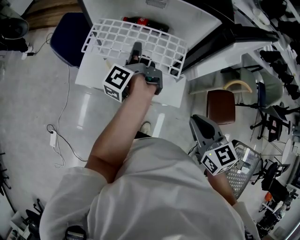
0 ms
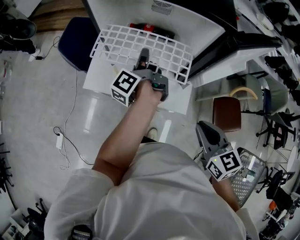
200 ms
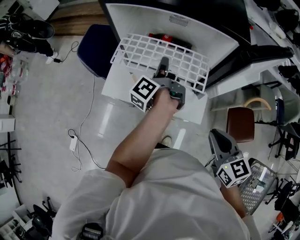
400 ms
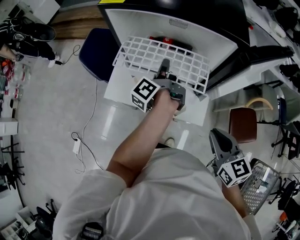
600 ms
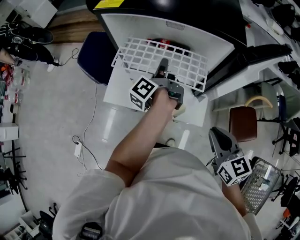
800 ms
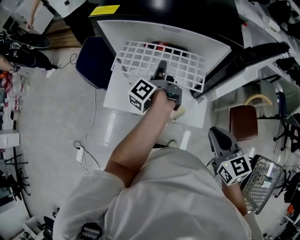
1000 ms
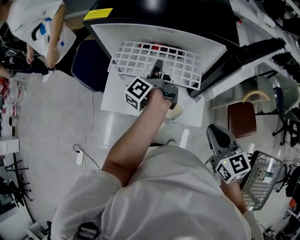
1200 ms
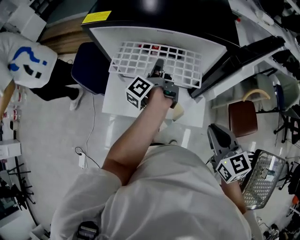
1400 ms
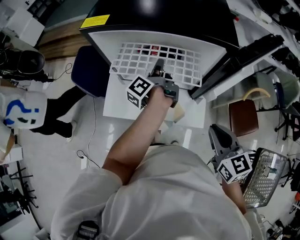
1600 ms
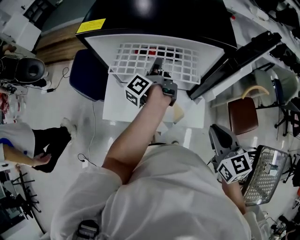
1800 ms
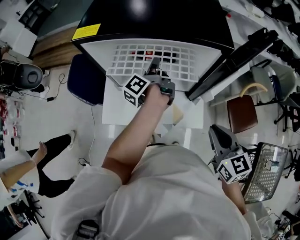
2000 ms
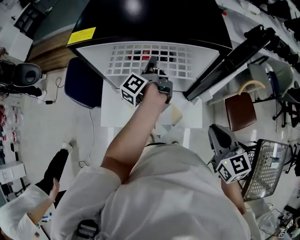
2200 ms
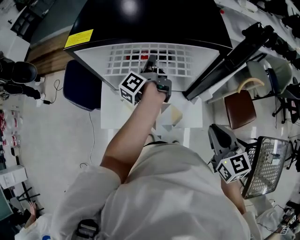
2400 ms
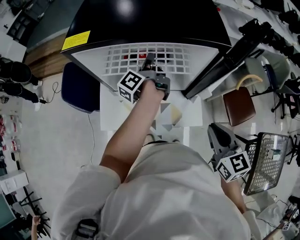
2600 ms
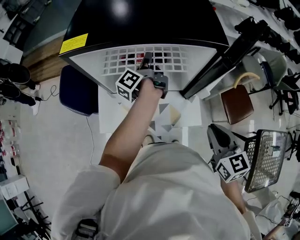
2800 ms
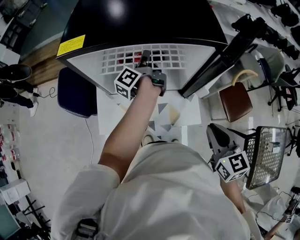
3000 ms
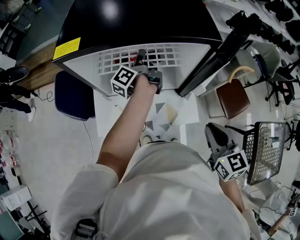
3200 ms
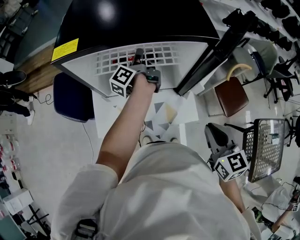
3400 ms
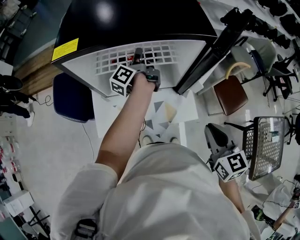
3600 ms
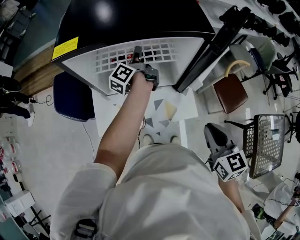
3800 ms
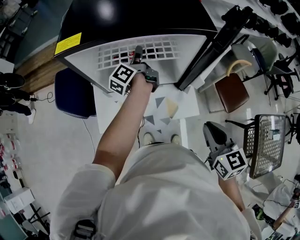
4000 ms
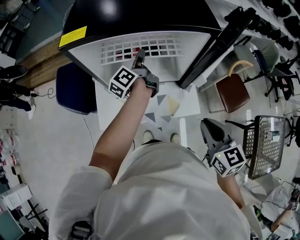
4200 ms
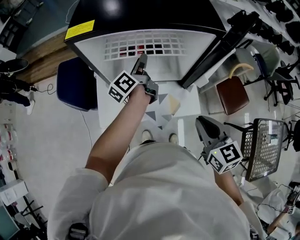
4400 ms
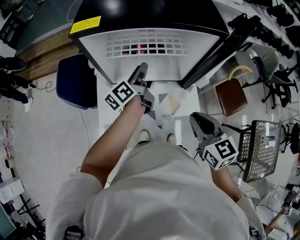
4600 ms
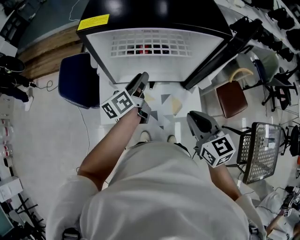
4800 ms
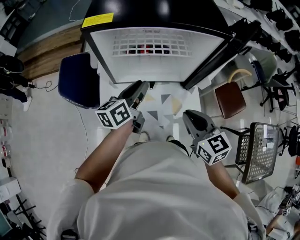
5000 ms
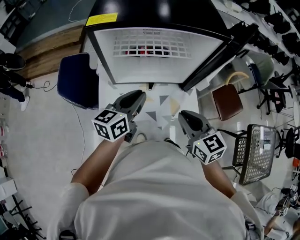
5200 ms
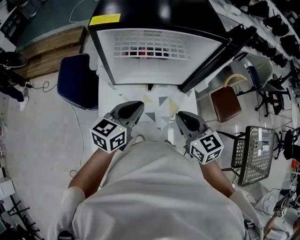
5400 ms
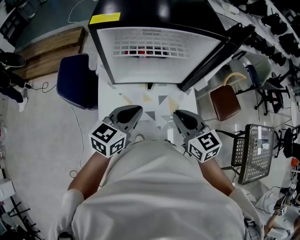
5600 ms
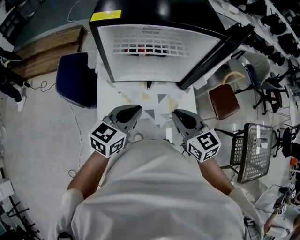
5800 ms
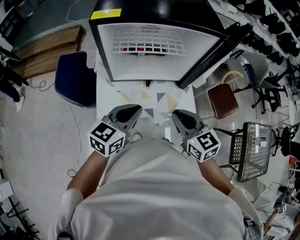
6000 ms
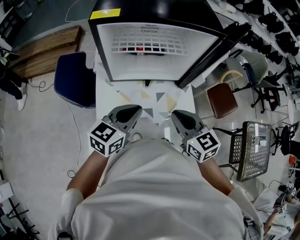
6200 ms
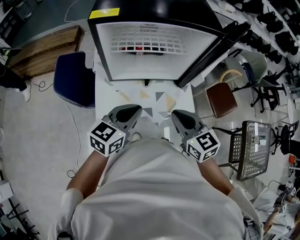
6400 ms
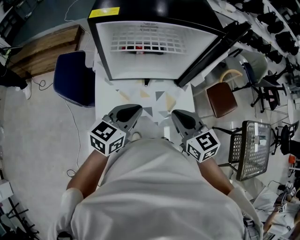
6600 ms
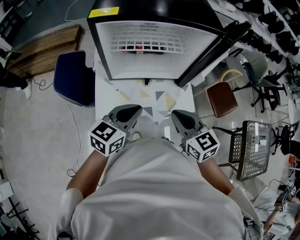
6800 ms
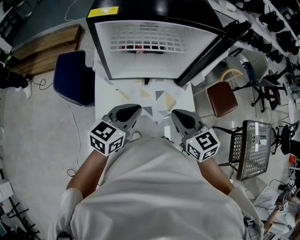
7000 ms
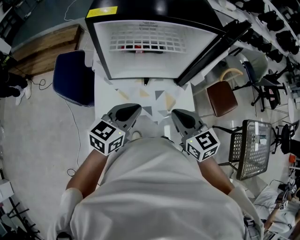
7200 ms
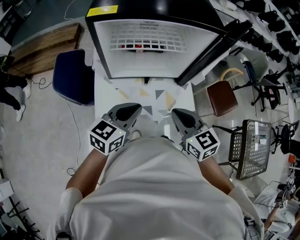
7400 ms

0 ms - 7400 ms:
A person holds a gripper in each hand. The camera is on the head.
3000 ms - 4400 ms: The right gripper changes place by approximately 5 cm.
4400 ms - 6000 ms: The right gripper changes place by approximately 10 cm.

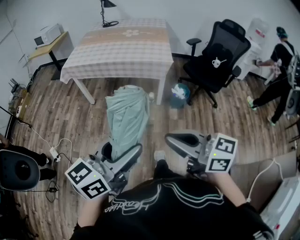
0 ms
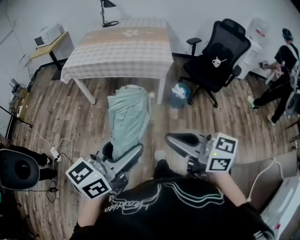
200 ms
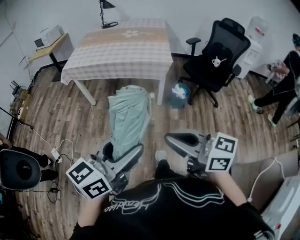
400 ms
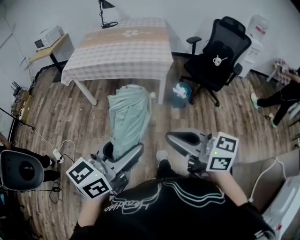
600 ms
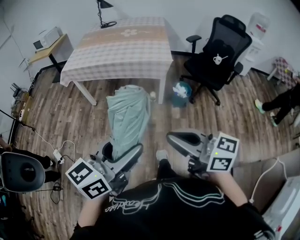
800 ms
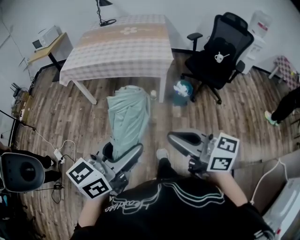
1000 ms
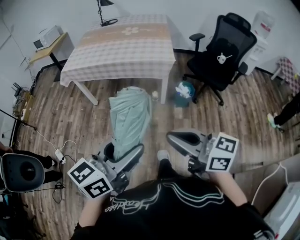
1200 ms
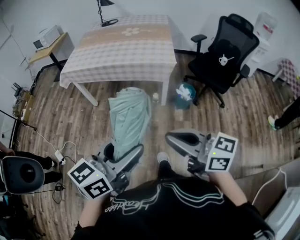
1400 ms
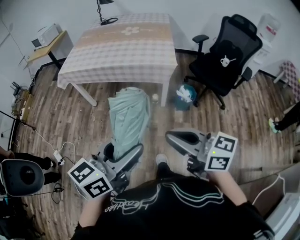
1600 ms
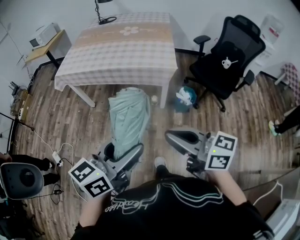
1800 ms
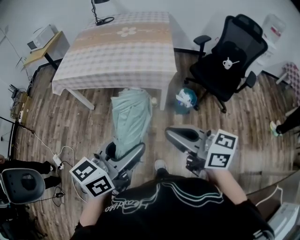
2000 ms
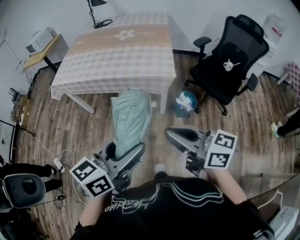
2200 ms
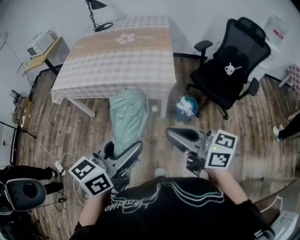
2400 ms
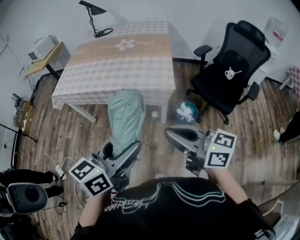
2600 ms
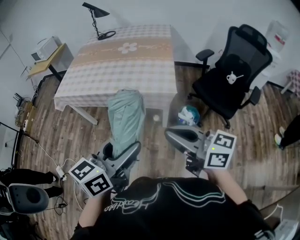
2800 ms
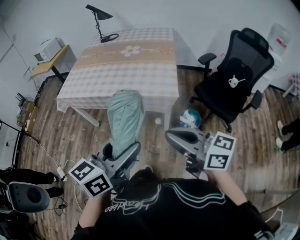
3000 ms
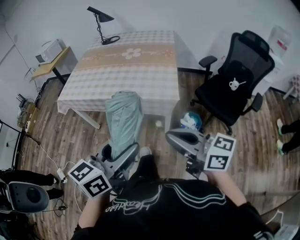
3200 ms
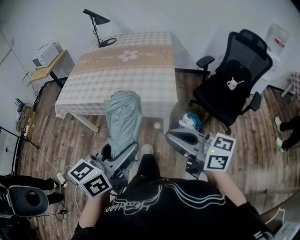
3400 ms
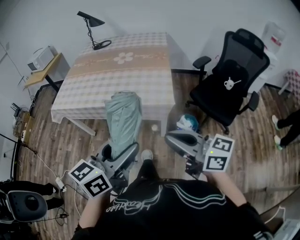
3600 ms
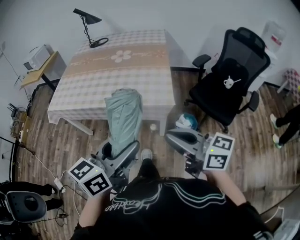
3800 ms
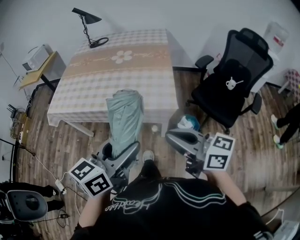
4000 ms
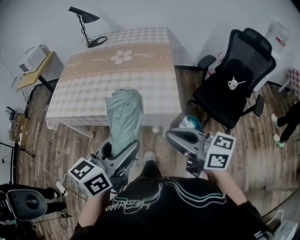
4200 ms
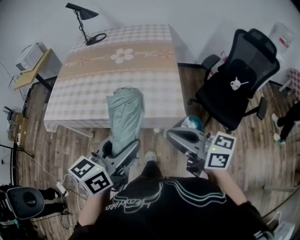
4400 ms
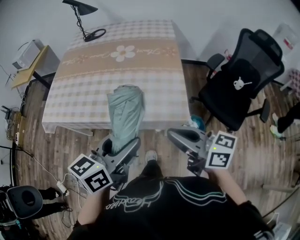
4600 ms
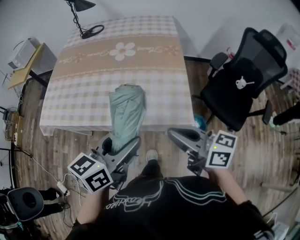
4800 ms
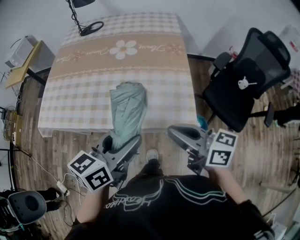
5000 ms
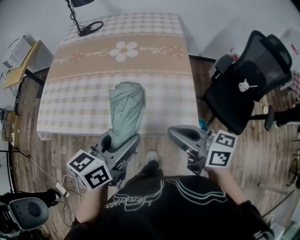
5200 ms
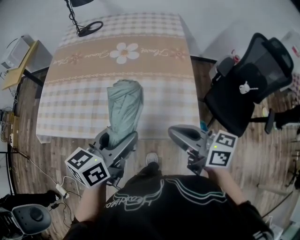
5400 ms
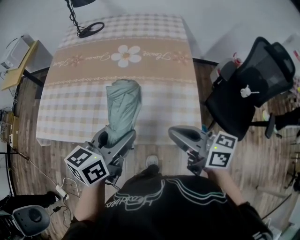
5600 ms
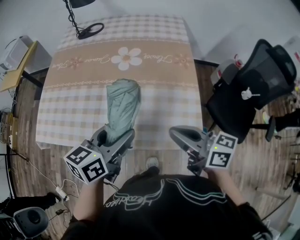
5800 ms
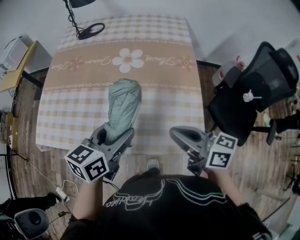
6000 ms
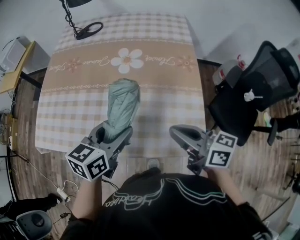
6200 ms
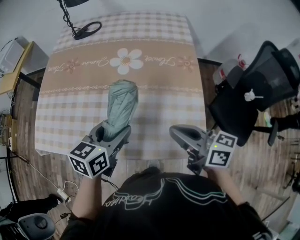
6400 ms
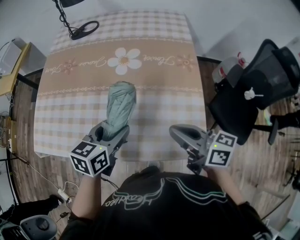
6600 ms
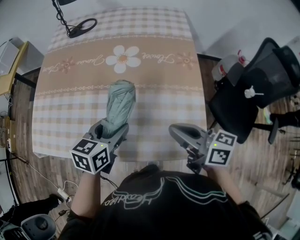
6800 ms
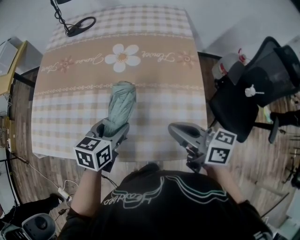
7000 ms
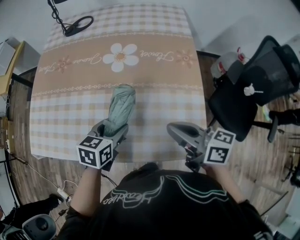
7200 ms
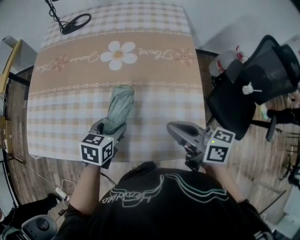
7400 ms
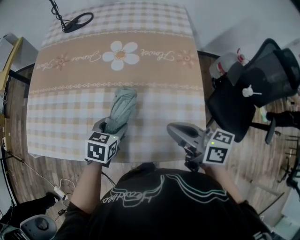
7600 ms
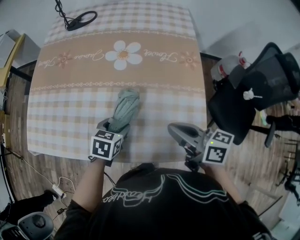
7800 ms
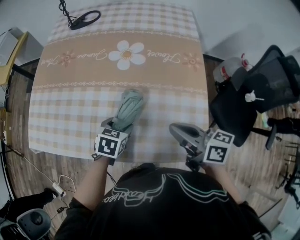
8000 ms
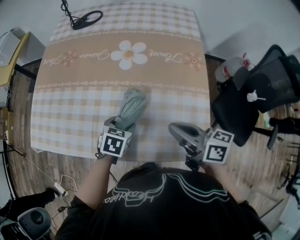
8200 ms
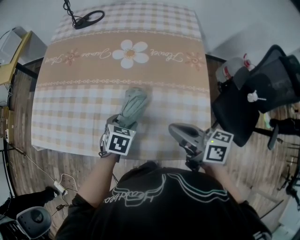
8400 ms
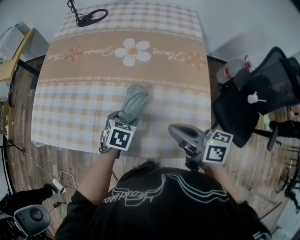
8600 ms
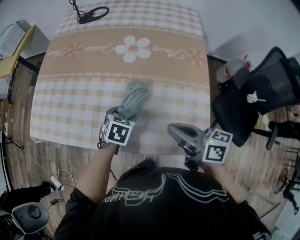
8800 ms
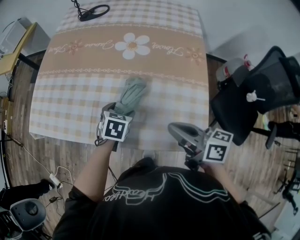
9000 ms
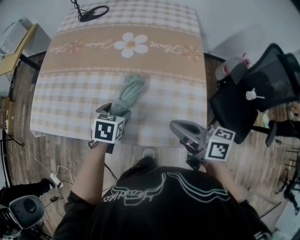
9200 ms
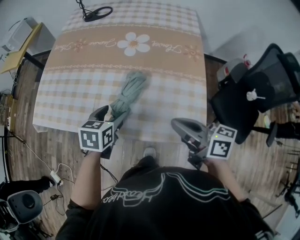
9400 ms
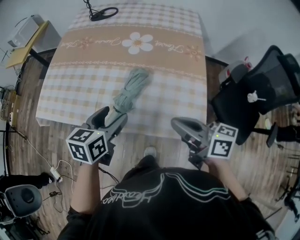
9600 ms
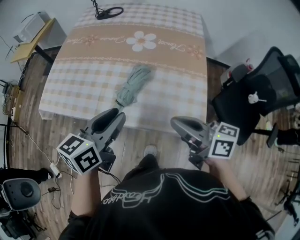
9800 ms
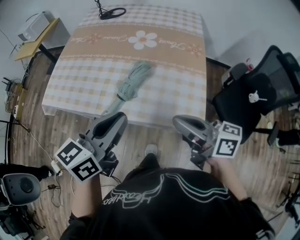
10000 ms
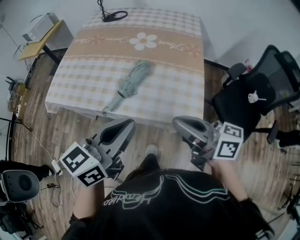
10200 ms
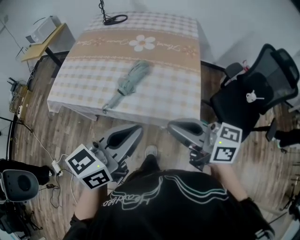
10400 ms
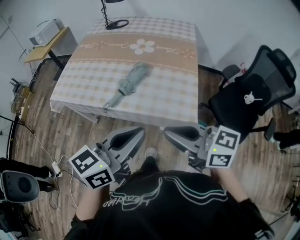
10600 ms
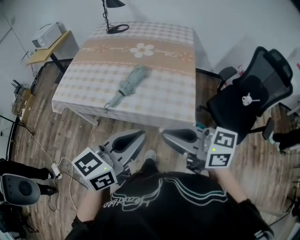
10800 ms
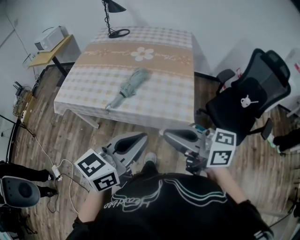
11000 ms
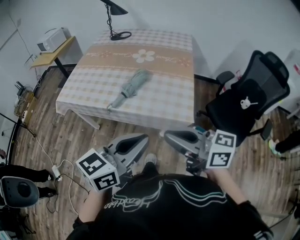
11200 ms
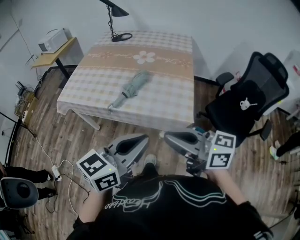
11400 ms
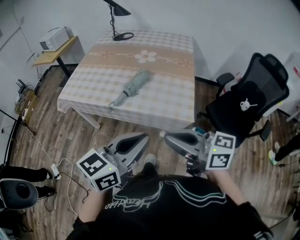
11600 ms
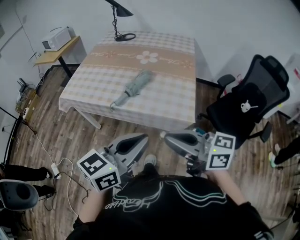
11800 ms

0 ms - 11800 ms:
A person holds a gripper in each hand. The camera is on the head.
0 ms - 1400 ms: Both grippers travel together forward, some 10 cm.
1400 ms - 3000 ms: The right gripper travels forward and to the right by approximately 25 cm. Meanwhile the left gripper heads forward, covering about 25 cm.
3000 ms - 4400 ms: Both grippers travel together forward, roughly 20 cm.
4400 ms - 6000 ms: The two grippers go roughly 25 cm forward.
6000 ms - 7400 ms: The right gripper travels forward and downward by approximately 10 cm. Meanwhile the left gripper moves downward and forward, some 15 cm, and changes its angle by some 20 degrees.
7400 ms - 8800 ms: The left gripper moves downward, roughly 5 cm.
8800 ms - 10400 ms: The right gripper shifts about 25 cm backward and upward, and turns by roughly 20 degrees. Meanwhile the left gripper goes about 40 cm upward and backward, tips its fingers upward by about 50 degrees, and closes up.
10400 ms - 11800 ms: Both grippers move backward, approximately 10 cm.

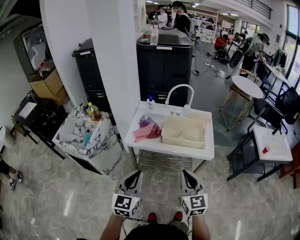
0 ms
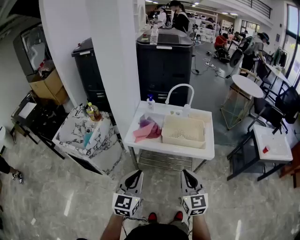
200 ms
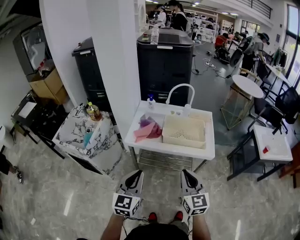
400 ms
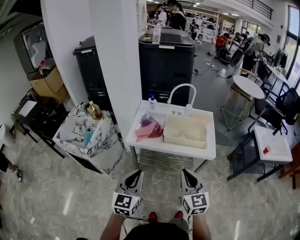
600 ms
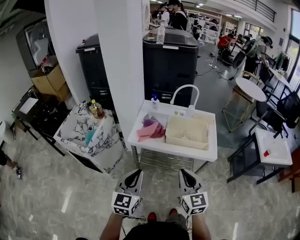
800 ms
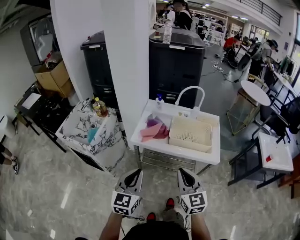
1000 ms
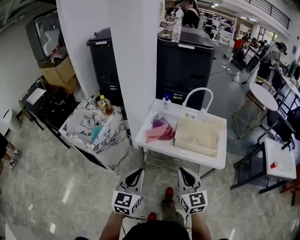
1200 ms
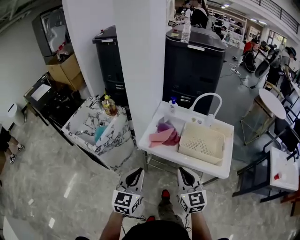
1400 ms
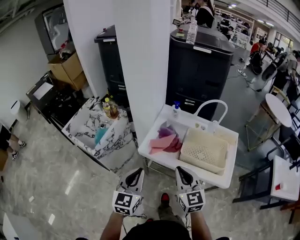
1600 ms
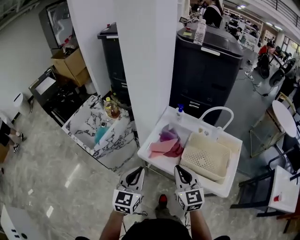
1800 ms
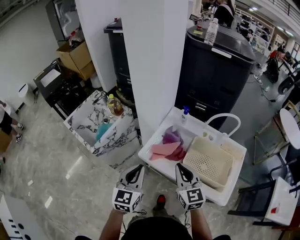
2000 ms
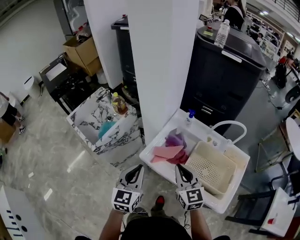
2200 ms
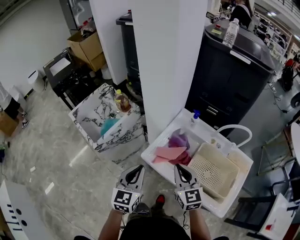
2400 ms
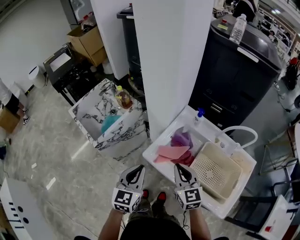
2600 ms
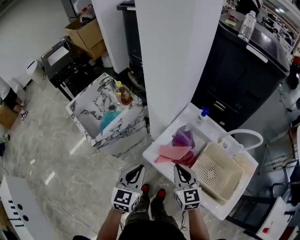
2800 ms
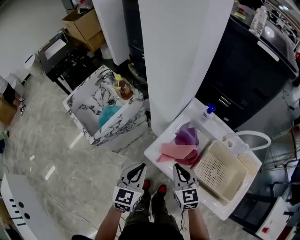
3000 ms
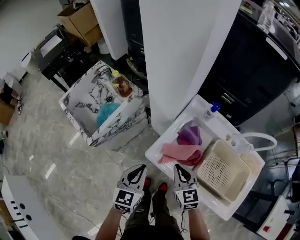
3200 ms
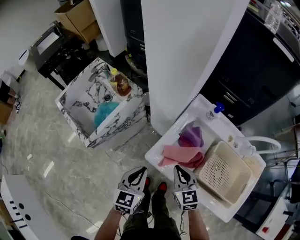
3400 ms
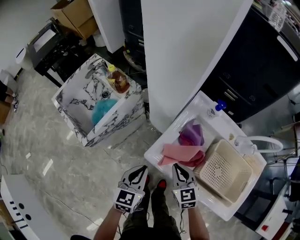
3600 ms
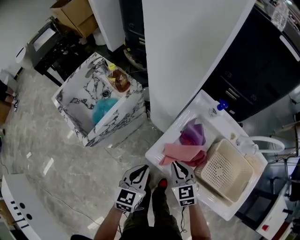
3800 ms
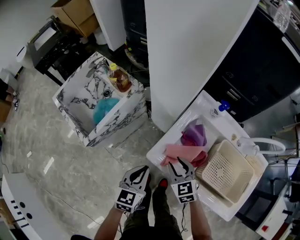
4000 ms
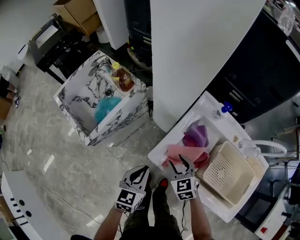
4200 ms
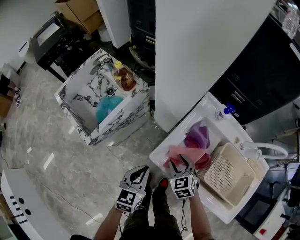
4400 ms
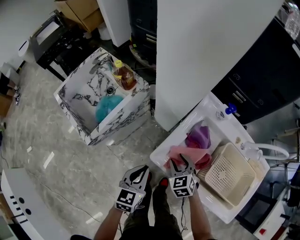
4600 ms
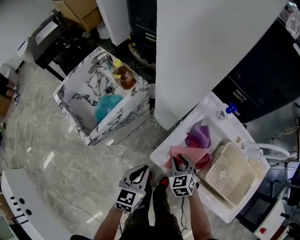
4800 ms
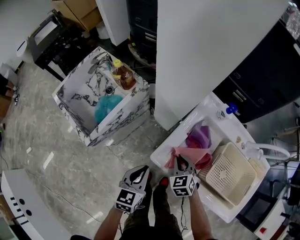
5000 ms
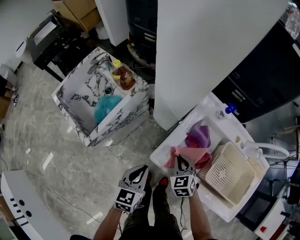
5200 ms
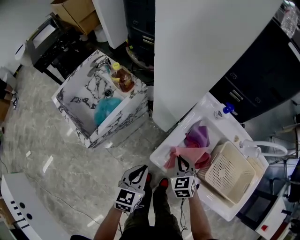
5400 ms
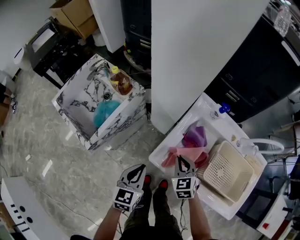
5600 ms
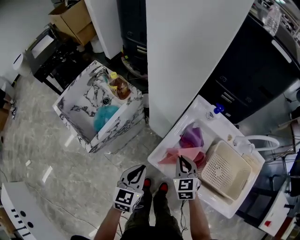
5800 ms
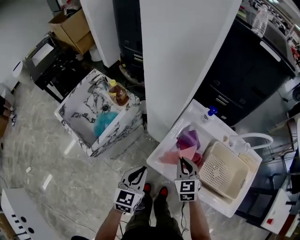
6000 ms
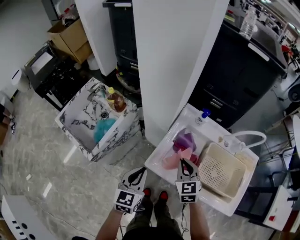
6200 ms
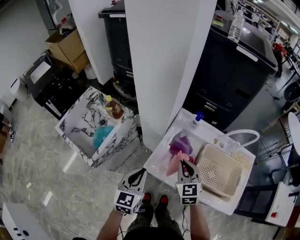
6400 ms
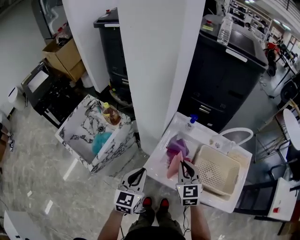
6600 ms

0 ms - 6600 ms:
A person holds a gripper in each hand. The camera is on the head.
0 ms - 1600 ms: The two grippers go roughly 20 cm forward and to the left.
1600 ms - 3200 ms: Both grippers move forward and downward, roughly 25 cm. The right gripper turns by about 20 degrees.
3200 ms - 5000 ms: The left gripper shifts some 5 cm downward. The right gripper shifts about 15 cm downward and forward, swivels some 30 degrees, and opens and closes again.
5000 ms - 6600 ms: The right gripper goes roughly 20 cm upward, and rotates some 30 degrees. The left gripper travels upward by approximately 15 cm.
